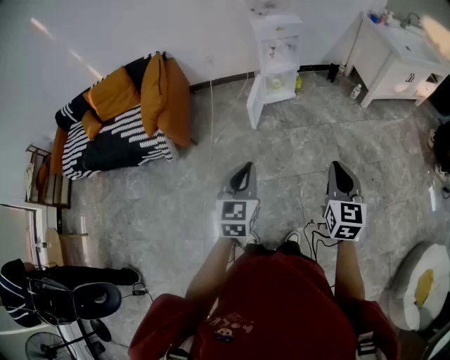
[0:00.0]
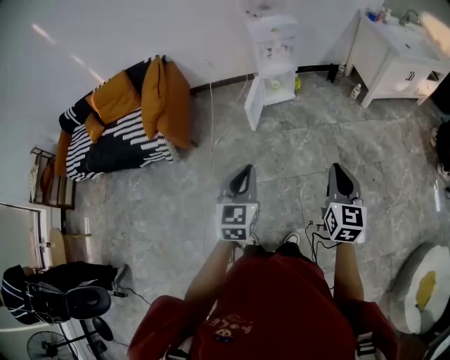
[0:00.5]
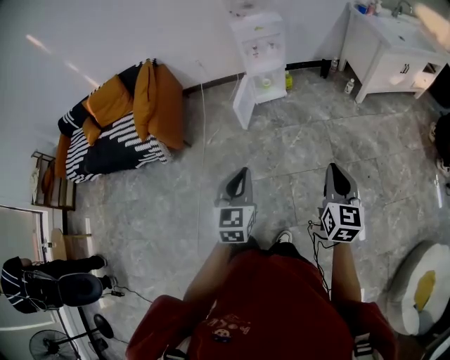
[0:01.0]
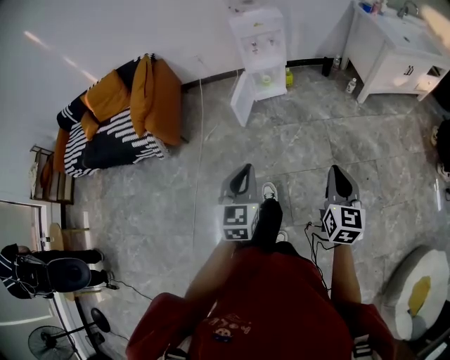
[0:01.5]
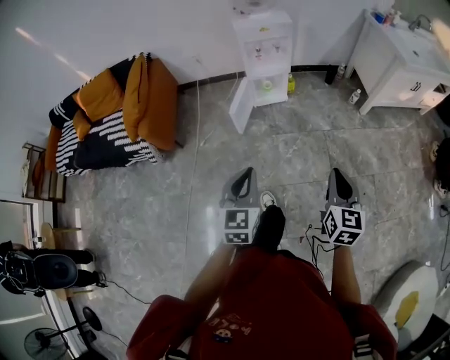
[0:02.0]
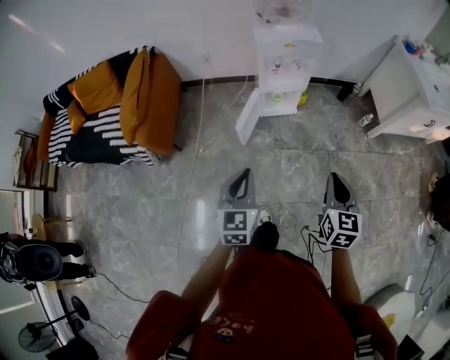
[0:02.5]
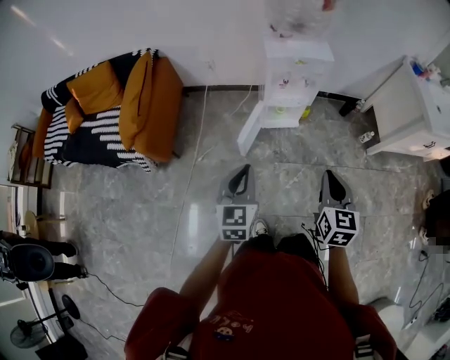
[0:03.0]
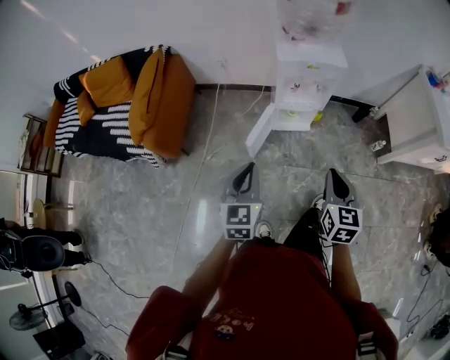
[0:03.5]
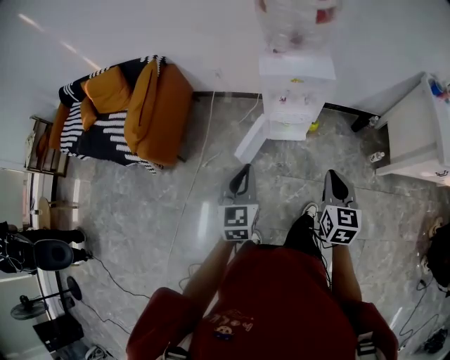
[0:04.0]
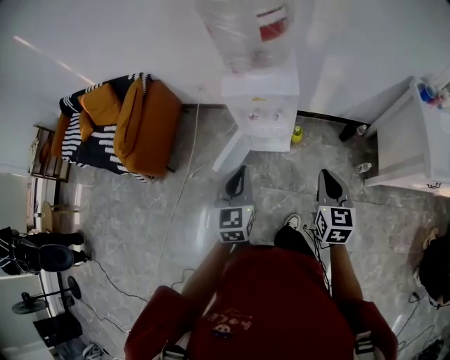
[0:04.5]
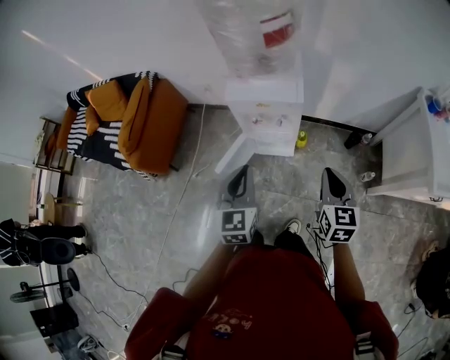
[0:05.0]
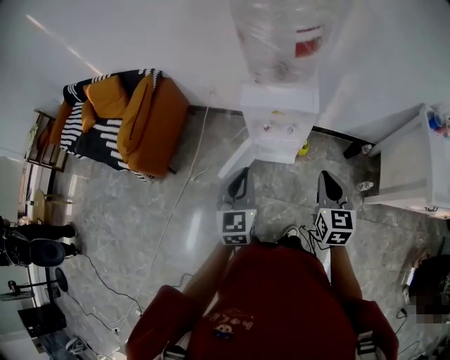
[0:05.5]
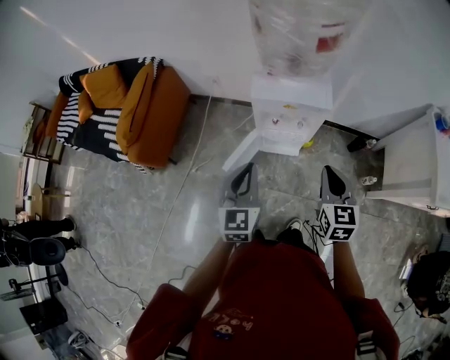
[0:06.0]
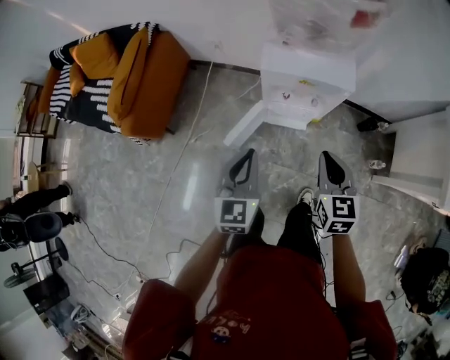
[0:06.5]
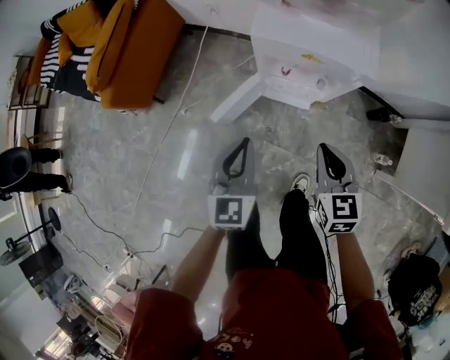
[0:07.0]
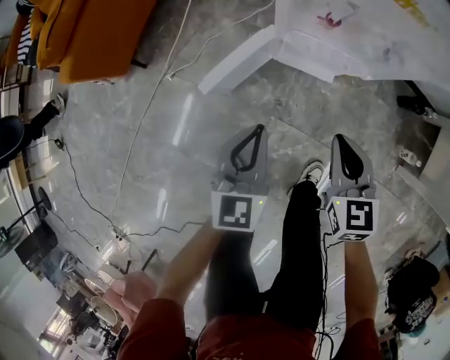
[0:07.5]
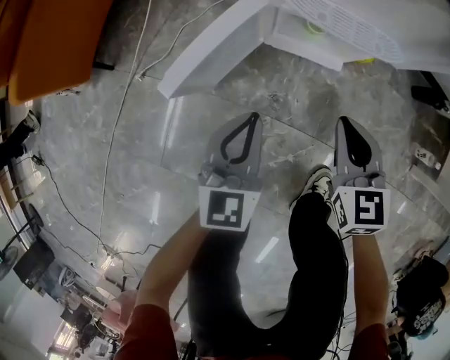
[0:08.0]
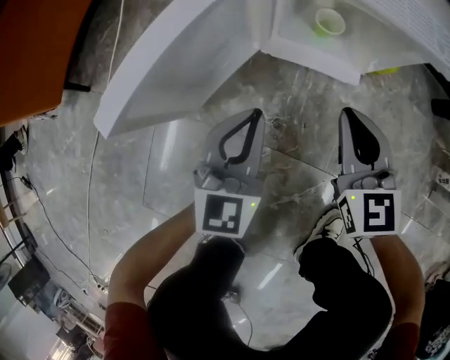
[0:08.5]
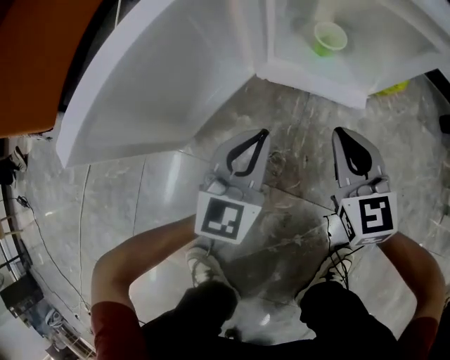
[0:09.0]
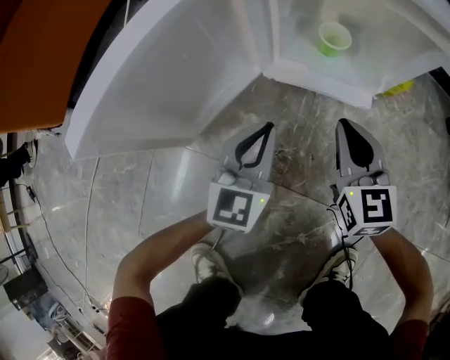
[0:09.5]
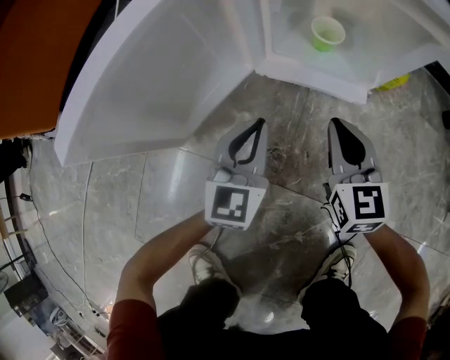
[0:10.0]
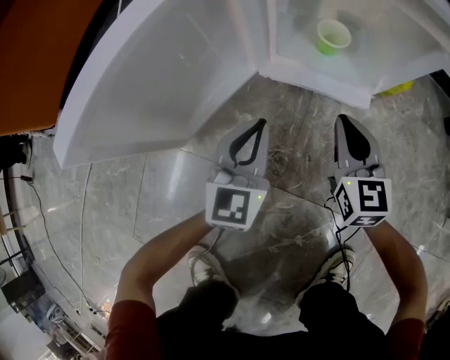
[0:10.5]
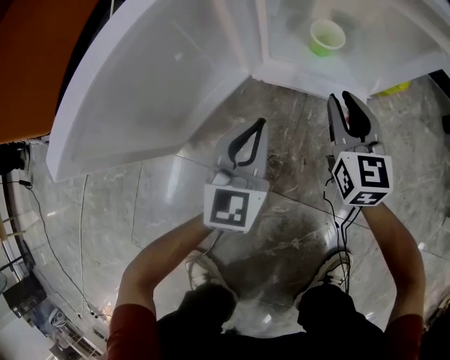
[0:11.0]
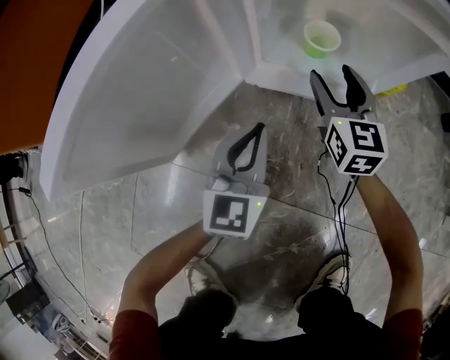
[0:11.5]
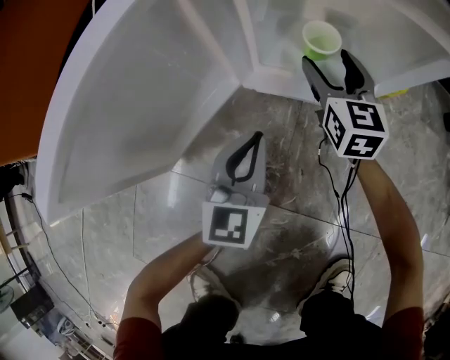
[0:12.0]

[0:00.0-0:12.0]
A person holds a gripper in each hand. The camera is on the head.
0:00.0 to 0:02.0: Both grippers travel together to the right, forward and downward, some 20 cm.
0:02.0 to 0:04.0: Both grippers move forward, about 40 cm.
0:04.0 to 0:06.0: The left gripper travels forward and to the right by about 15 cm. Meanwhile the right gripper goes some 15 cm forward, and travels to the right and back again, approximately 15 cm each way.
0:06.0 to 0:08.0: Both grippers move downward, some 60 cm.
0:08.0 to 0:10.0: Both grippers move downward, some 30 cm.
0:10.0 to 0:12.0: The right gripper is displaced forward by approximately 20 cm, and opens.

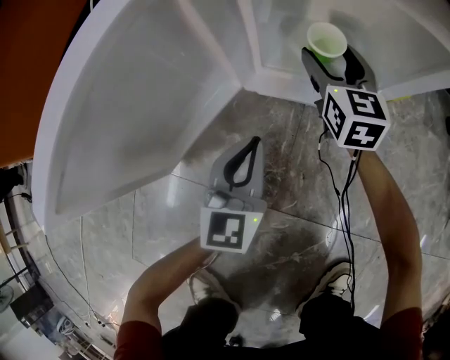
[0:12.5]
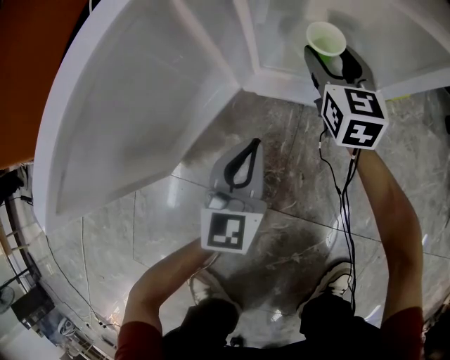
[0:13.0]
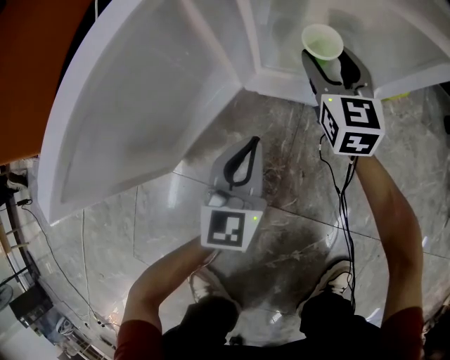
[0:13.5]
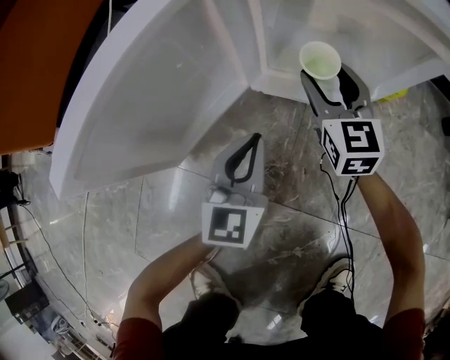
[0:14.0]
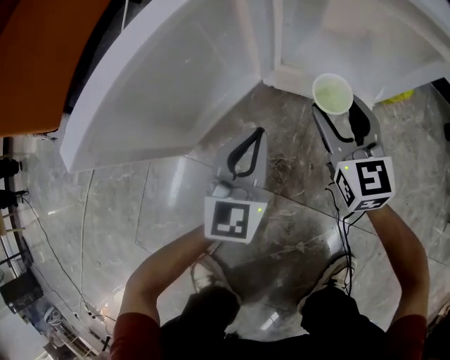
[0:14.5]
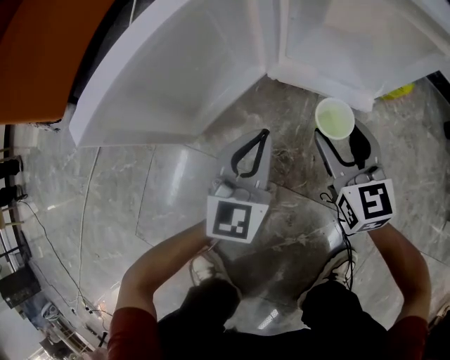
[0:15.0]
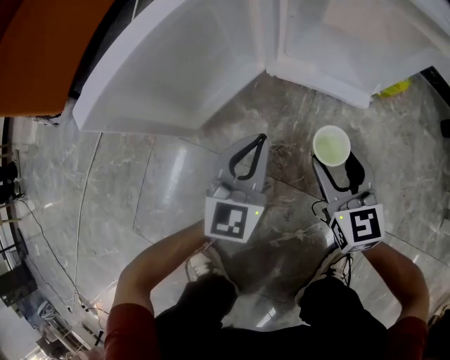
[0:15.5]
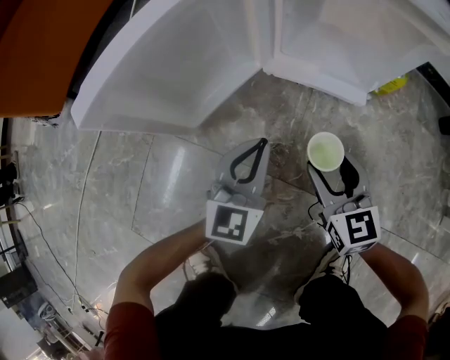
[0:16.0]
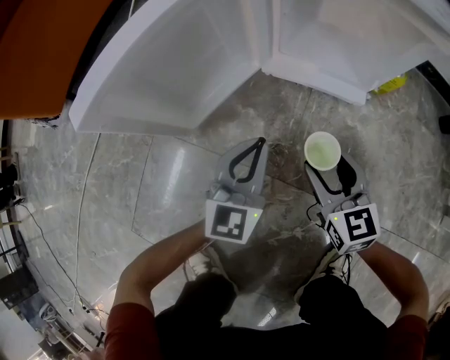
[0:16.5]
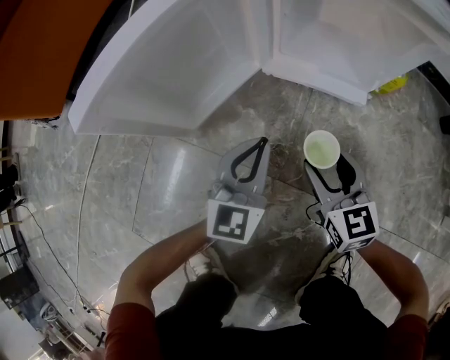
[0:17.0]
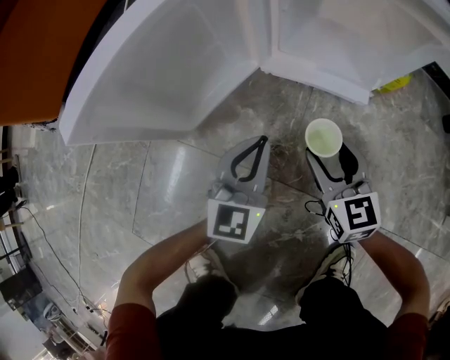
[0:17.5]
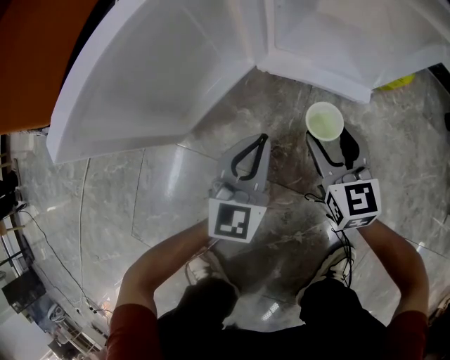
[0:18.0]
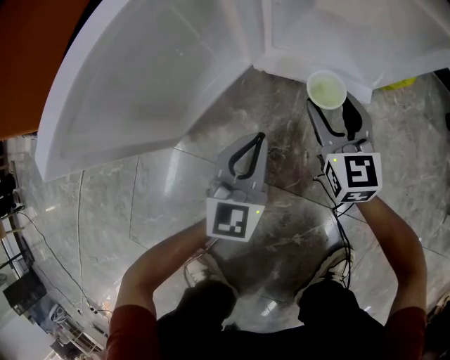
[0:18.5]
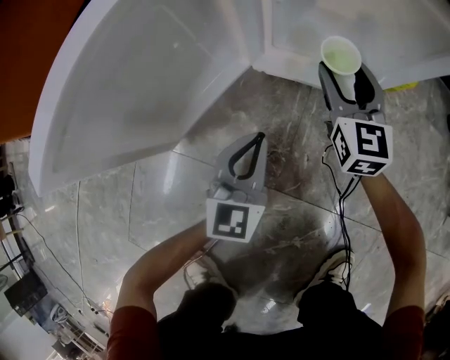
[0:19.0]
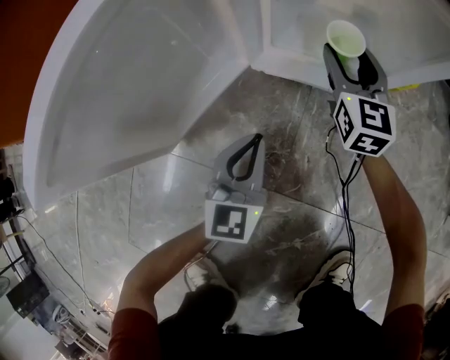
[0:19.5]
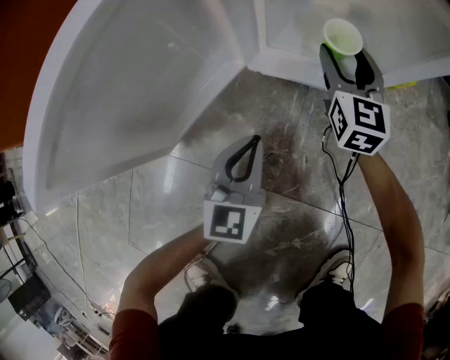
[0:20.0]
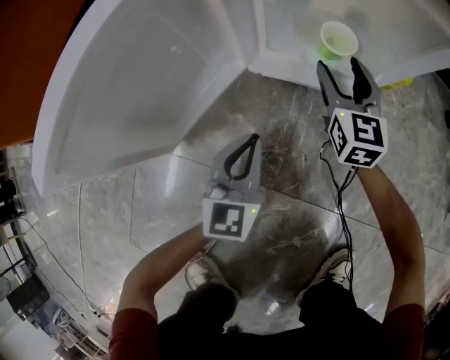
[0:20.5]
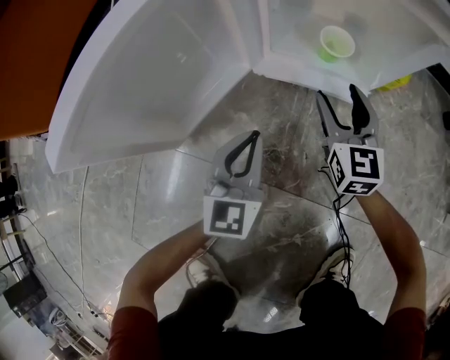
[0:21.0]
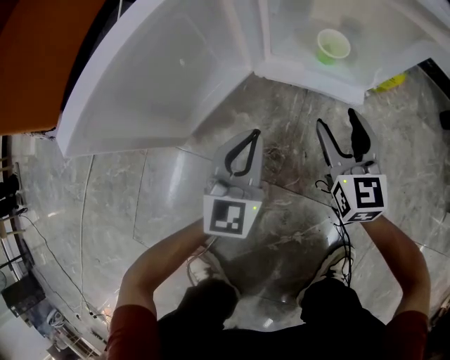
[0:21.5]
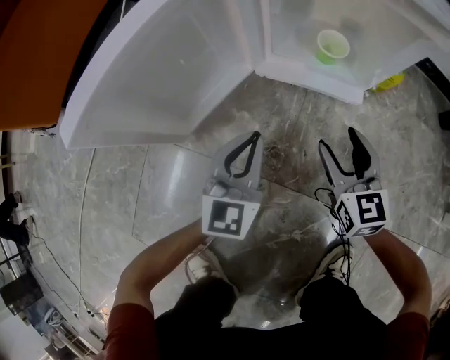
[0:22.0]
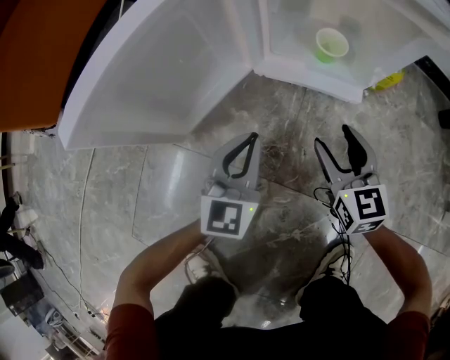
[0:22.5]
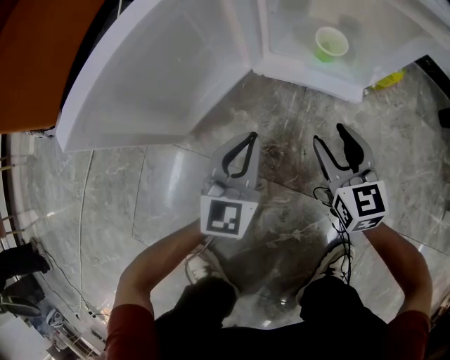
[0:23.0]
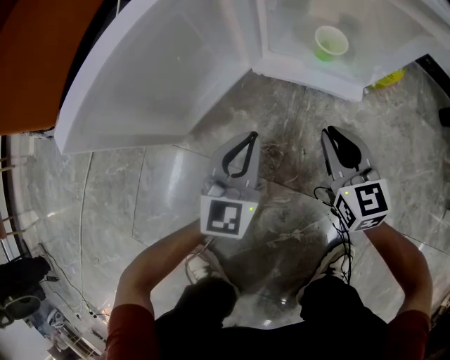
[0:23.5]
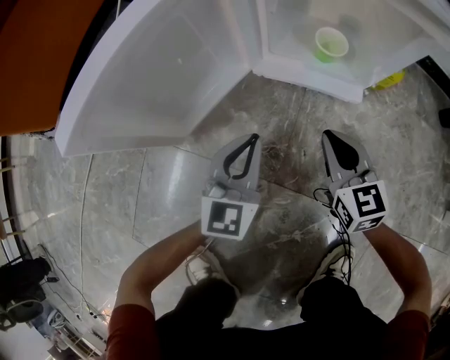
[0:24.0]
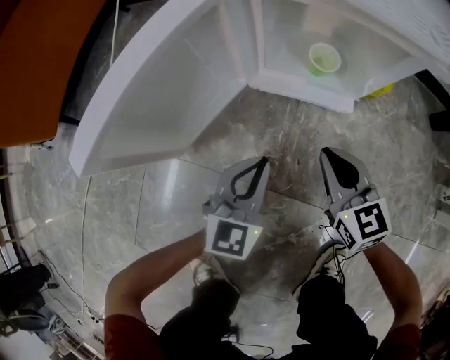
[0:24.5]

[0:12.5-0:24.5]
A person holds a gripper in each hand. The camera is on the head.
0:12.5 to 0:14.5: The right gripper goes some 15 cm backward; the left gripper moves roughly 5 cm.
0:14.5 to 0:16.5: The left gripper goes some 5 cm backward, while the right gripper is displaced backward by approximately 15 cm.
0:16.5 to 0:18.5: The left gripper changes place by about 5 cm. The right gripper shifts approximately 15 cm forward.
0:18.5 to 0:20.5: The right gripper shifts about 10 cm forward.
0:20.5 to 0:22.5: The left gripper ends up some 5 cm from where it was. The right gripper goes approximately 15 cm backward.
0:22.5 to 0:24.5: The right gripper closes.

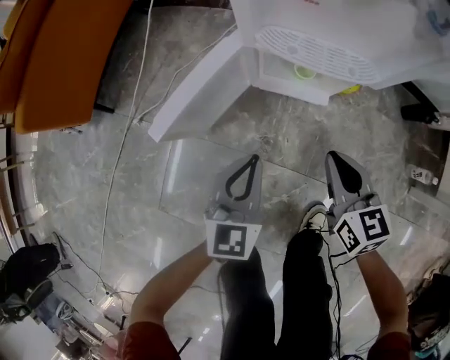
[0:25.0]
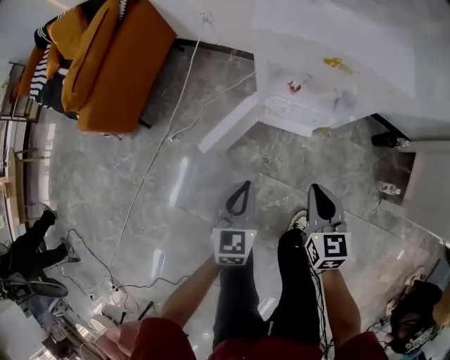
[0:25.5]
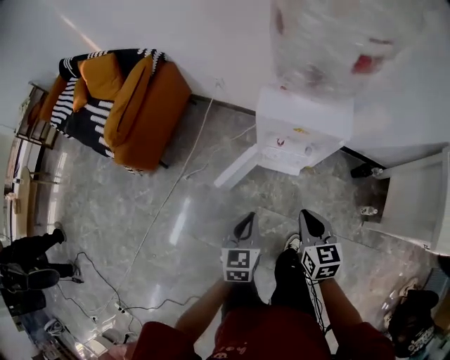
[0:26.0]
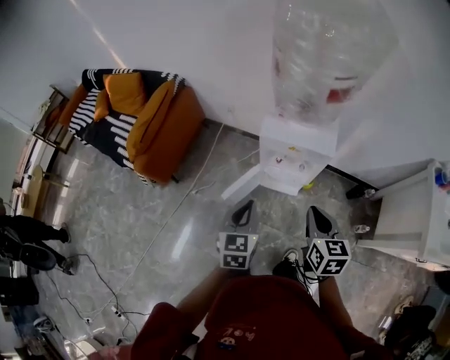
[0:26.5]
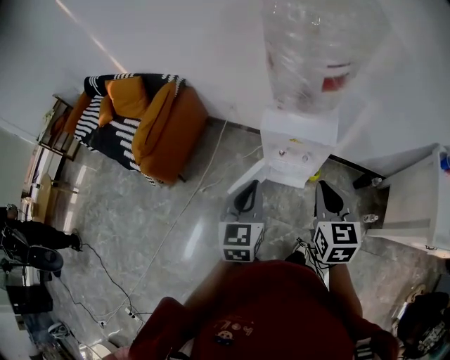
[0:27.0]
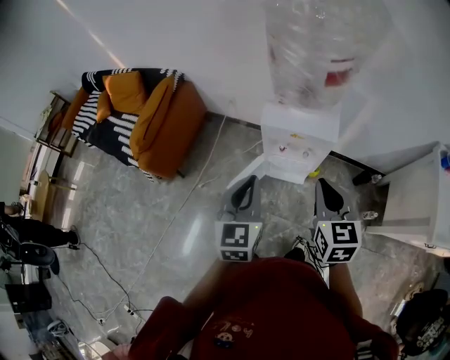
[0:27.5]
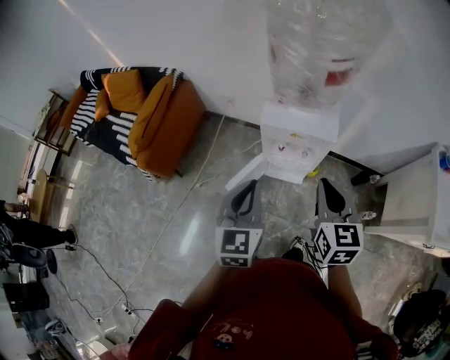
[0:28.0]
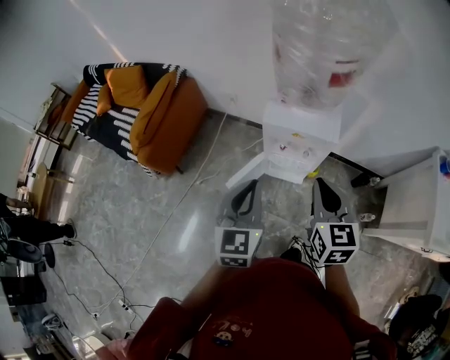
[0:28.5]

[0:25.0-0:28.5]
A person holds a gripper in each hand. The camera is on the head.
0:25.0 to 0:27.0: The two grippers go approximately 70 cm upward.
0:27.0 to 0:28.5: The grippers move only a little.
